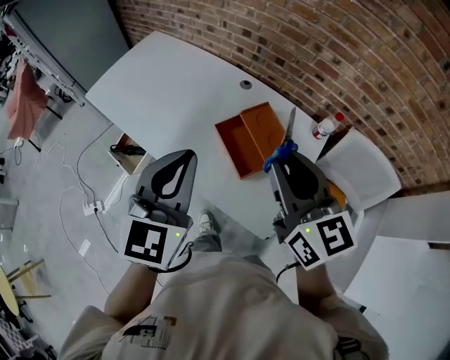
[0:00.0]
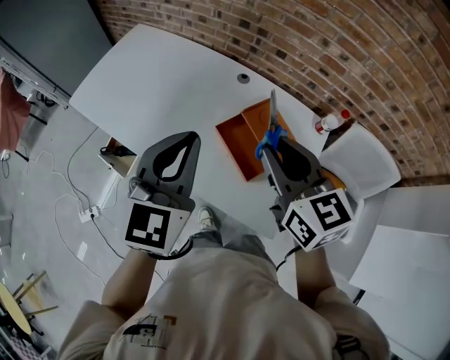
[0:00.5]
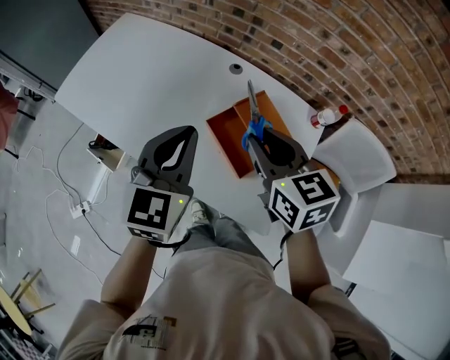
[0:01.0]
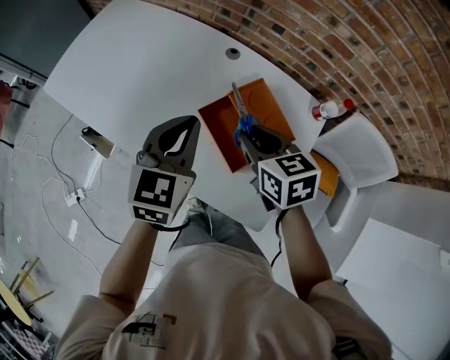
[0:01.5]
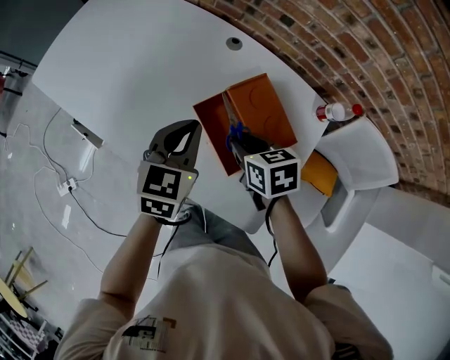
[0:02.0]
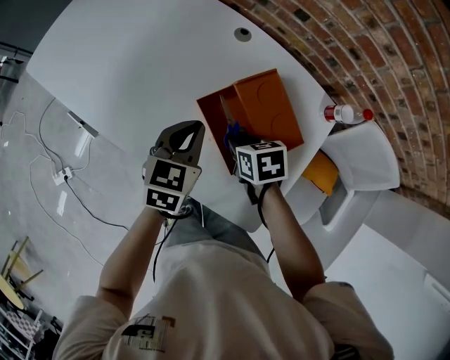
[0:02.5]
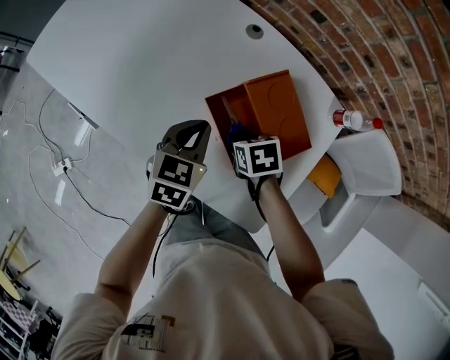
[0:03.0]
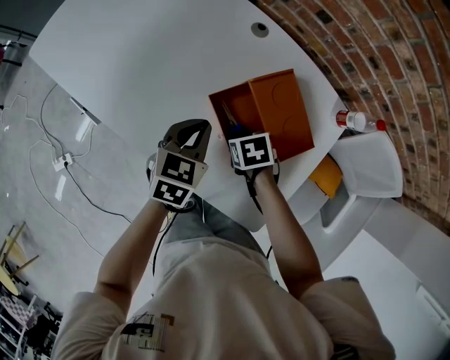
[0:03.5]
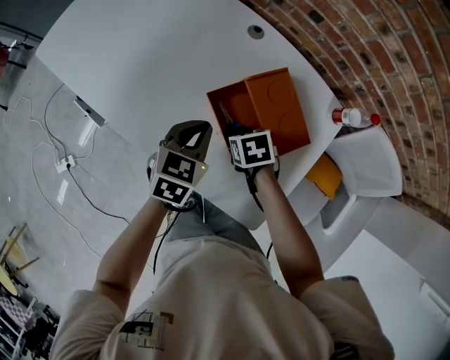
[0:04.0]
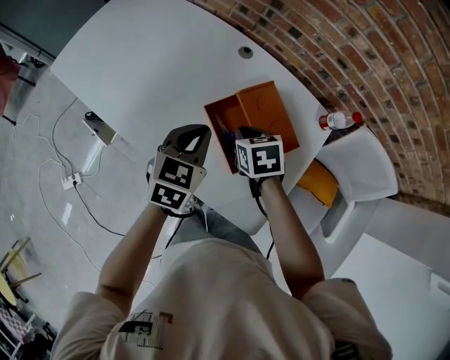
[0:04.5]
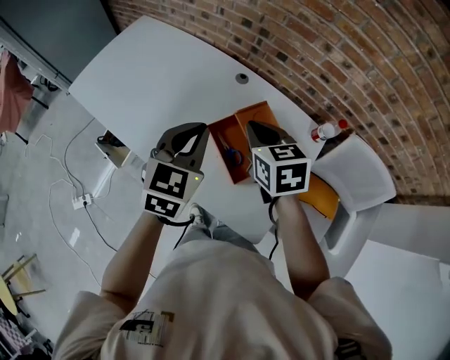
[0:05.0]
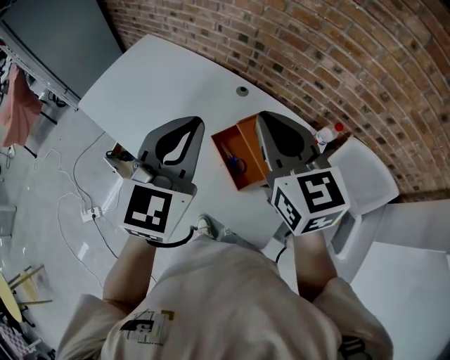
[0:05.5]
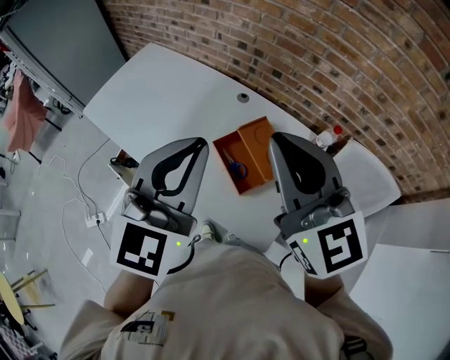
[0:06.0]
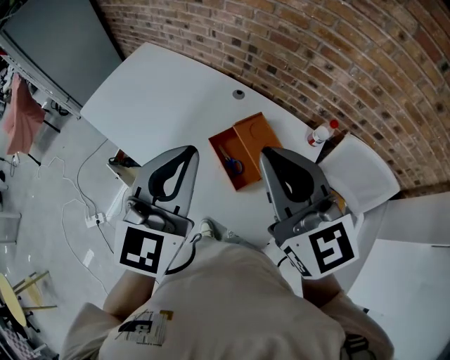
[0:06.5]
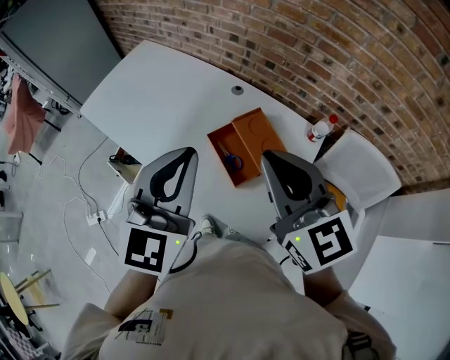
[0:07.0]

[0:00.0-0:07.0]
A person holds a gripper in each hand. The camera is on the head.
0.0 to 2.0 s: Both grippers travel together downward and forward, some 30 cm. The right gripper angles its fingers downward, by some 50 degrees; the left gripper changes its angle by roughly 20 degrees.
2.0 to 3.5 s: The grippers both shift downward by approximately 10 cm. The right gripper swivels about 30 degrees.
3.5 to 5.0 s: Both grippers move upward, some 25 cm. The left gripper turns by some 20 degrees. Meanwhile the right gripper tilts its fingers some 40 degrees upward.
5.0 to 7.0 s: The grippers both shift upward and backward by some 20 cm. The right gripper turns by approximately 30 degrees.

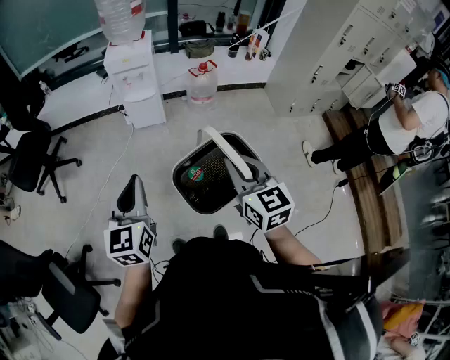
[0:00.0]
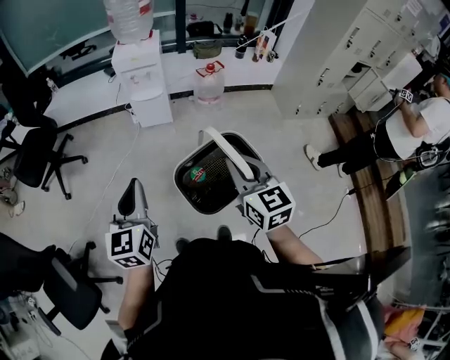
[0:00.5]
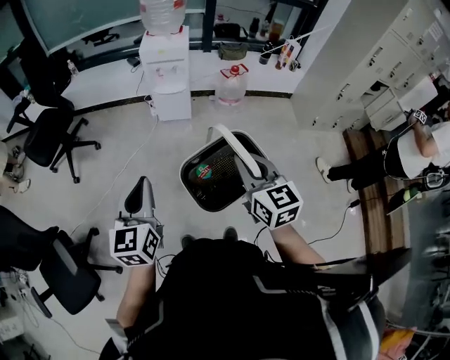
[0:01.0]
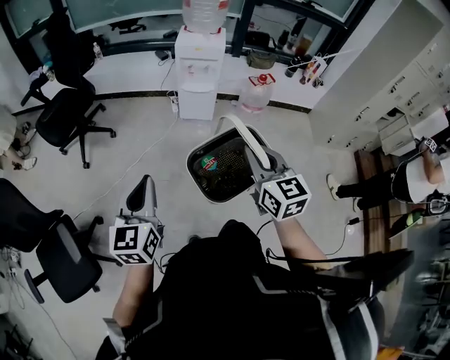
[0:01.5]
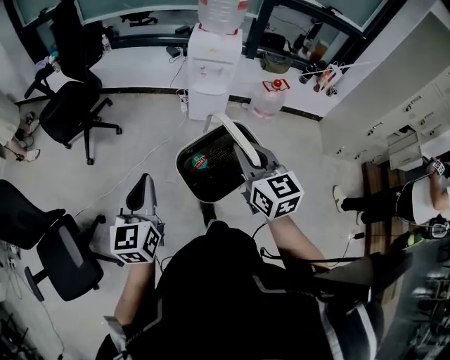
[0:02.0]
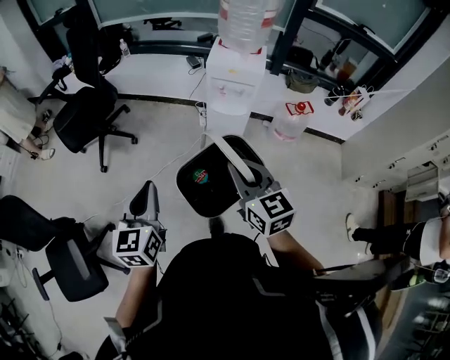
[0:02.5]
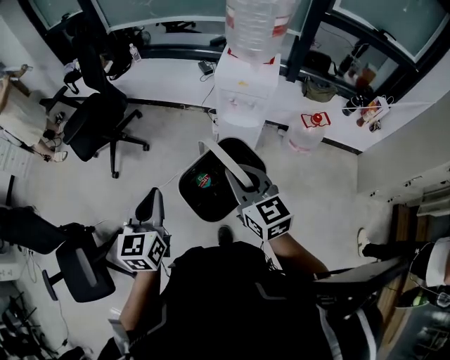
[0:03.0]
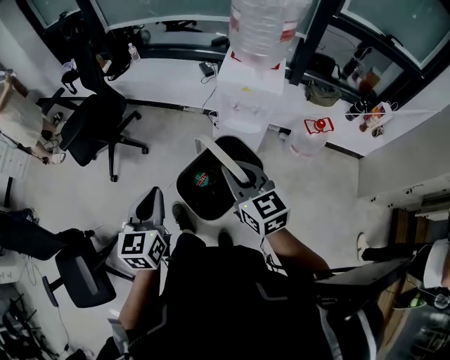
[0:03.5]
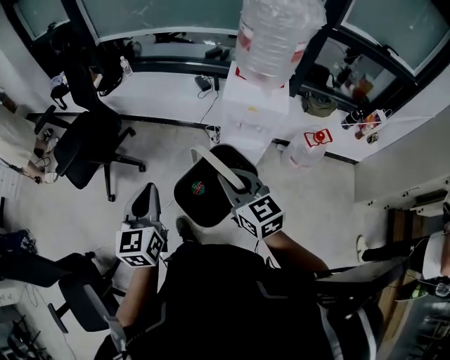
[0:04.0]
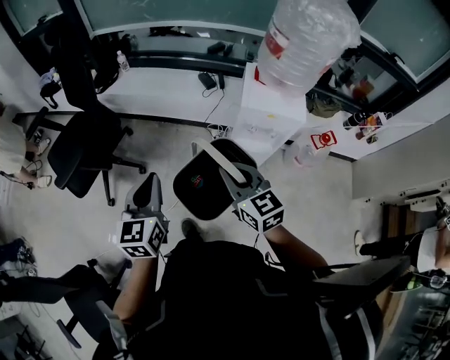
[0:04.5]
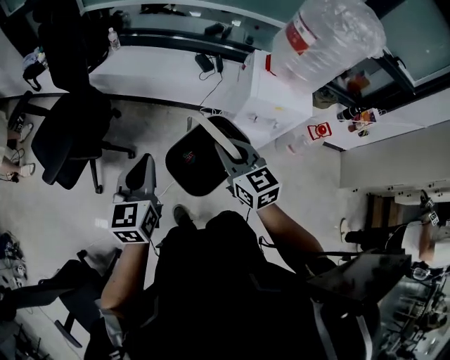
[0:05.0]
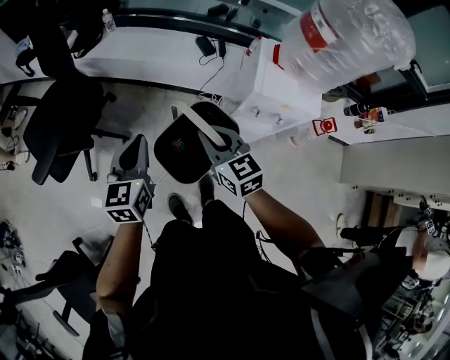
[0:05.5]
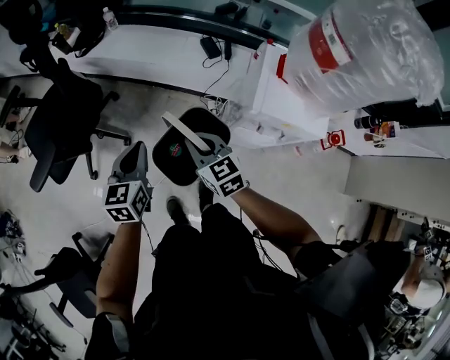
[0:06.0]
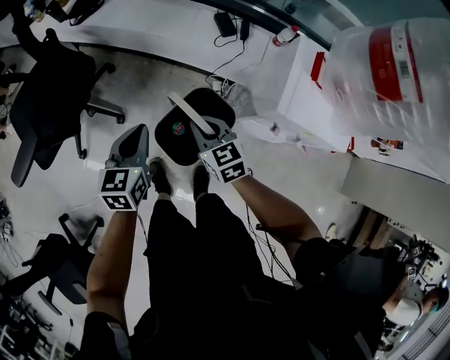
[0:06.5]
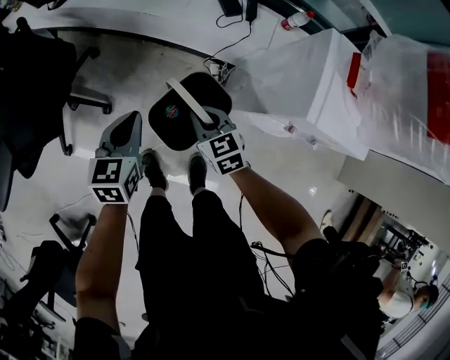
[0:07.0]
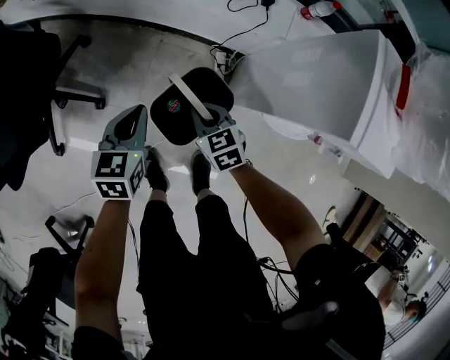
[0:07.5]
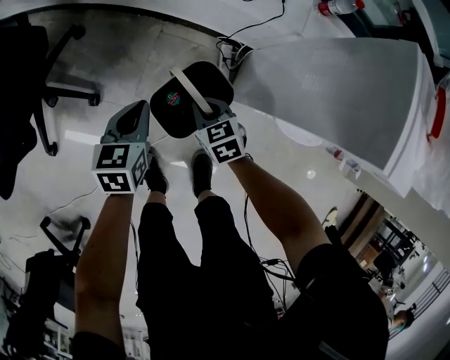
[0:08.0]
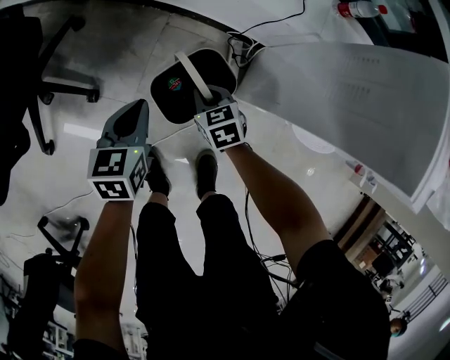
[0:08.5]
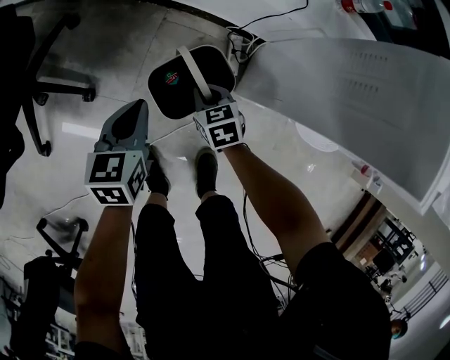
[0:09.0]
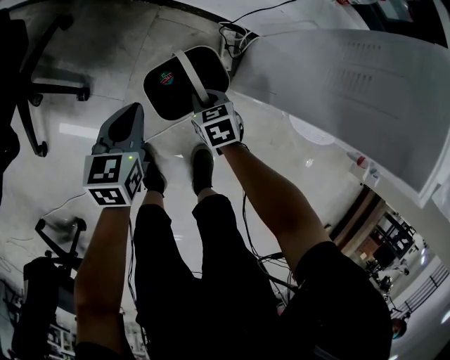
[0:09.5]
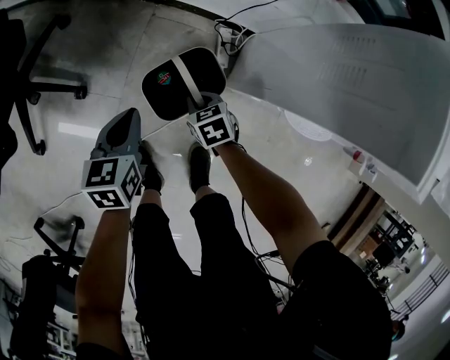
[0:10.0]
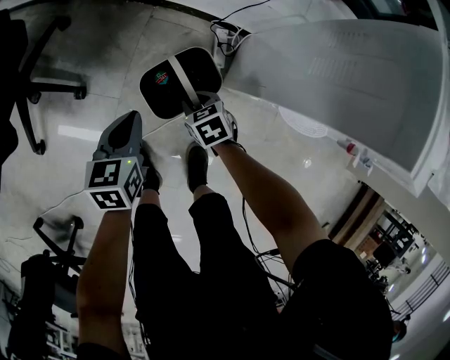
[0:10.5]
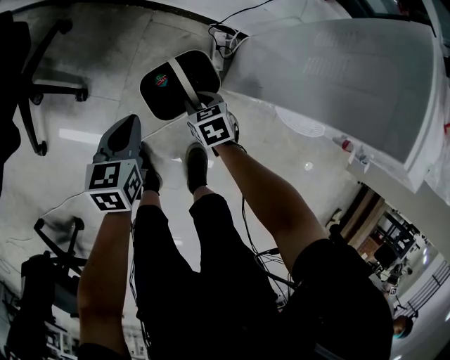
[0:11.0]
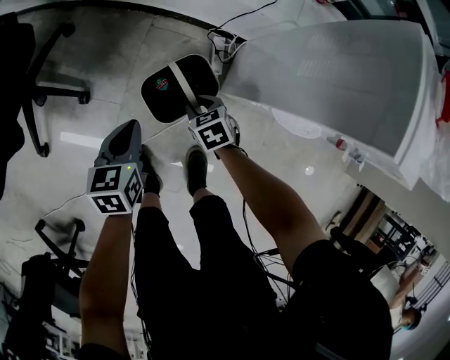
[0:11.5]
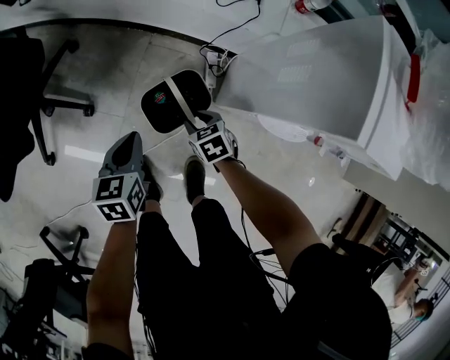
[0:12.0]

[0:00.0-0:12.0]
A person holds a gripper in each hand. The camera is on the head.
0.0 to 2.0 s: The right gripper moves to the left and forward, approximately 25 cm, while the left gripper is displaced to the left by some 20 cm.
2.0 to 4.0 s: The grippers both shift forward by roughly 35 cm.
4.0 to 6.0 s: The grippers both shift forward and downward by some 35 cm.
6.0 to 8.0 s: Both grippers travel together downward, roughly 40 cm. The right gripper changes its angle by approximately 20 degrees.
8.0 to 10.0 s: The right gripper travels downward by some 10 cm, while the left gripper goes approximately 5 cm downward.
10.0 to 12.0 s: Both grippers move upward, about 10 cm. The right gripper opens its fingers.

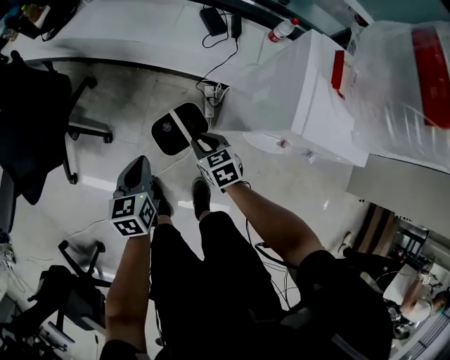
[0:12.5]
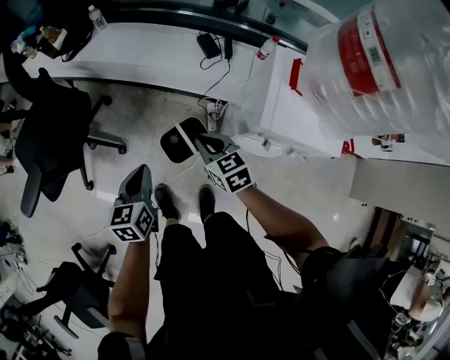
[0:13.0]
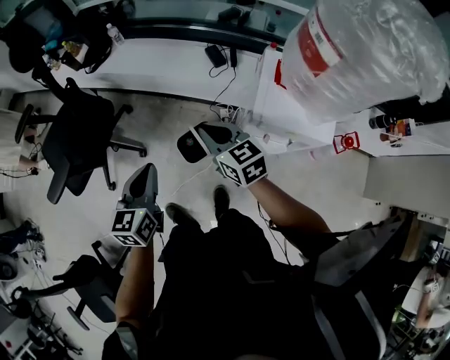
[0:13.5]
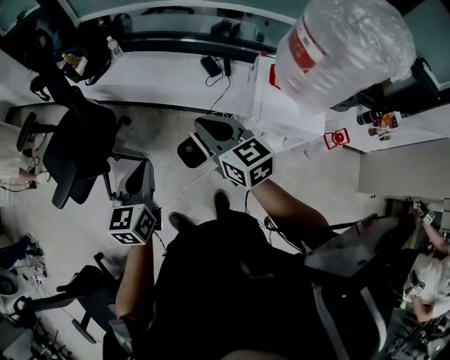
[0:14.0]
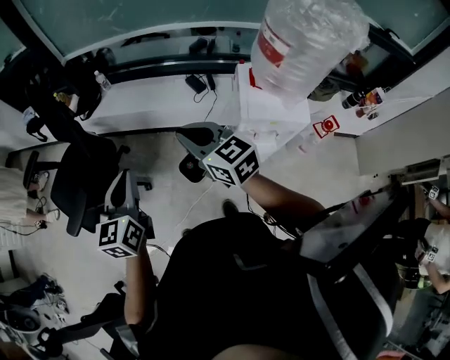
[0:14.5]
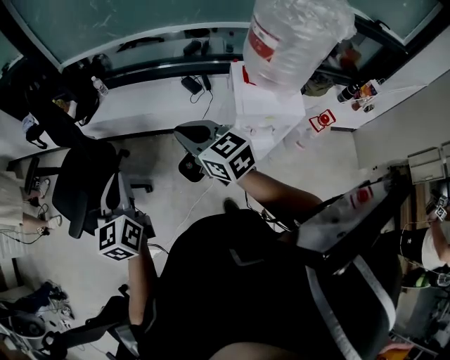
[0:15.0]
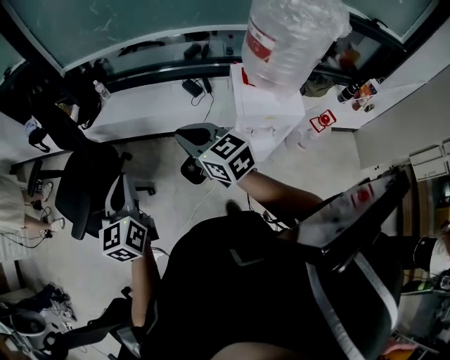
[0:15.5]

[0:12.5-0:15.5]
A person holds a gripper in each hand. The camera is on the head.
12.5 to 14.0 s: Both grippers move upward, about 40 cm. The right gripper points its fingers about 30 degrees further upward. Meanwhile the left gripper turns by about 20 degrees.
14.0 to 15.5 s: The left gripper travels upward and to the left by roughly 10 cm. The right gripper moves upward, some 5 cm.

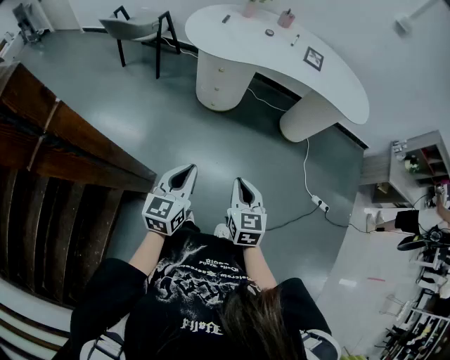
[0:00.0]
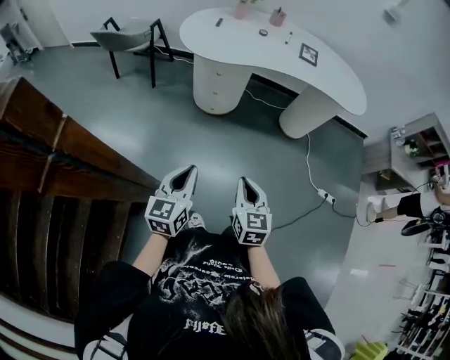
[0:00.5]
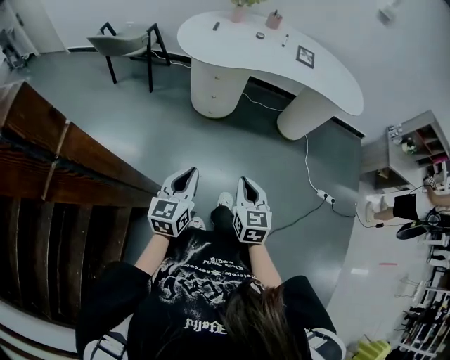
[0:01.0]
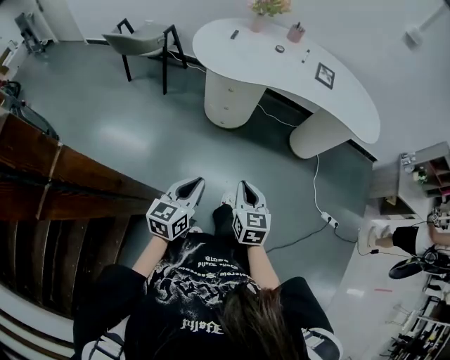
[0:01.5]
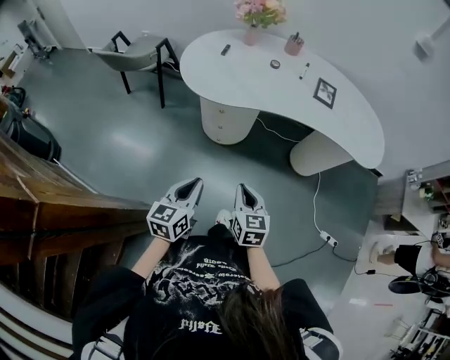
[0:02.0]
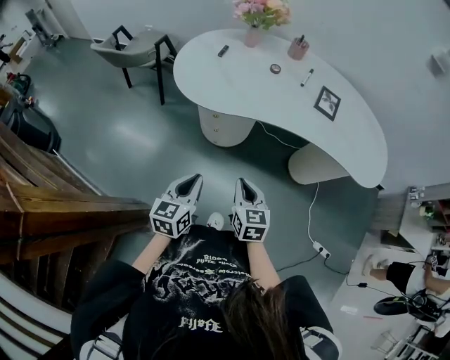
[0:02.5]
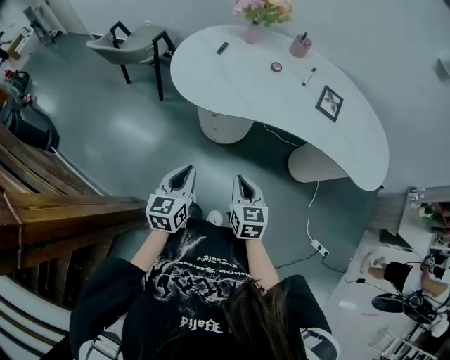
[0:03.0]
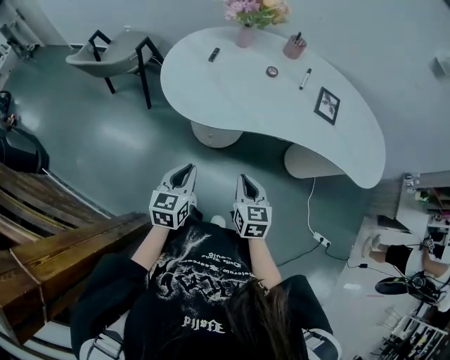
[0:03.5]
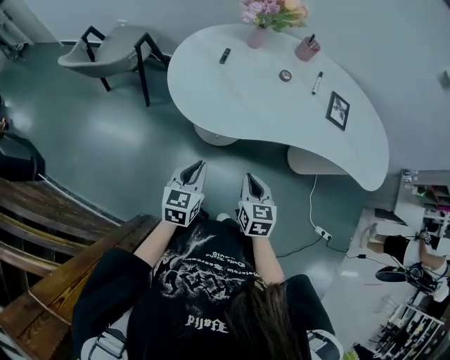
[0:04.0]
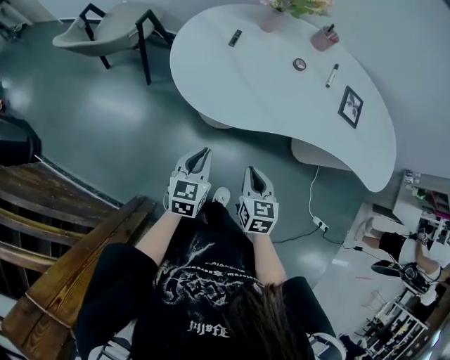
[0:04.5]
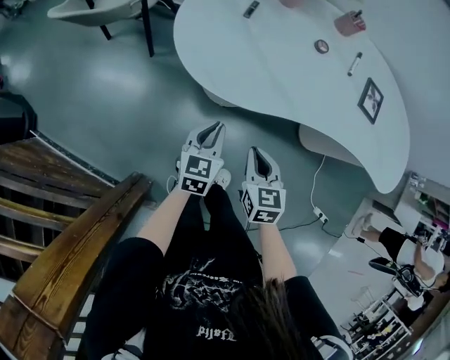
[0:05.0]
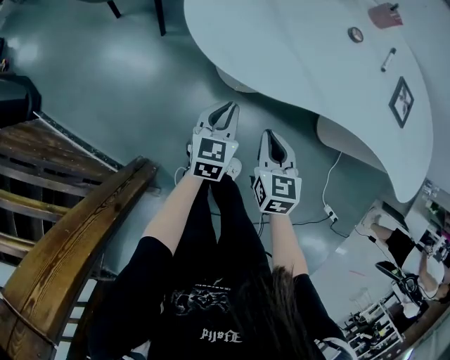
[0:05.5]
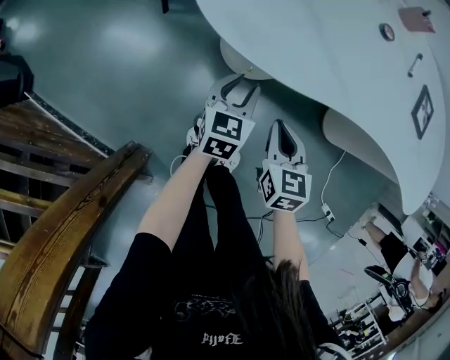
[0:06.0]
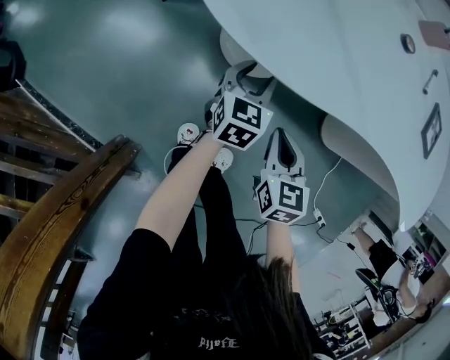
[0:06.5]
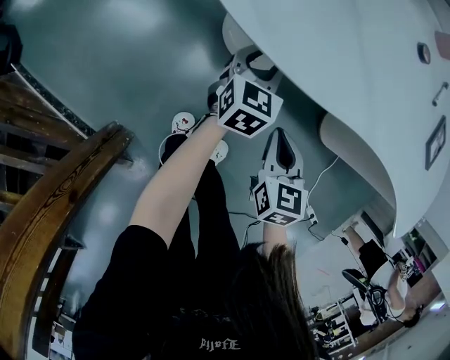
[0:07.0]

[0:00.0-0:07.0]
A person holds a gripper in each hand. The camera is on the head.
0.0 to 2.0 s: The two grippers go some 25 cm forward.
2.0 to 3.5 s: The grippers both shift forward by approximately 20 cm.
3.5 to 5.0 s: The left gripper travels forward and downward by approximately 15 cm; the right gripper is displaced to the left, forward and downward by some 15 cm.
5.0 to 7.0 s: The left gripper is displaced downward and forward by some 25 cm, and opens. Meanwhile the right gripper moves downward, about 20 cm.
